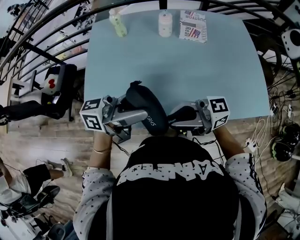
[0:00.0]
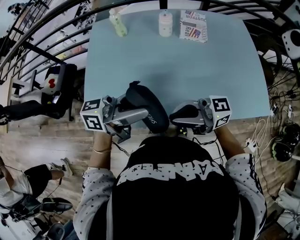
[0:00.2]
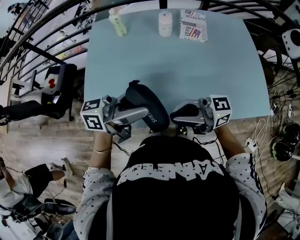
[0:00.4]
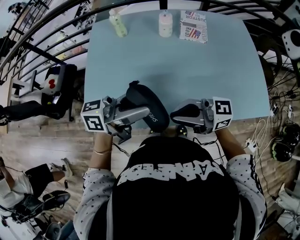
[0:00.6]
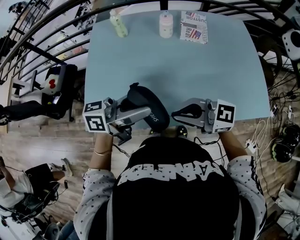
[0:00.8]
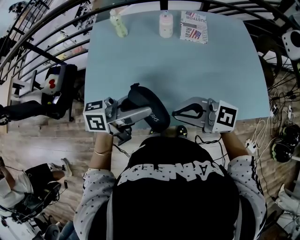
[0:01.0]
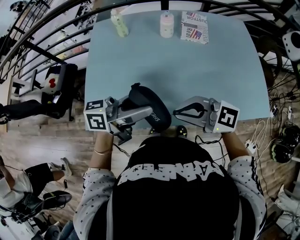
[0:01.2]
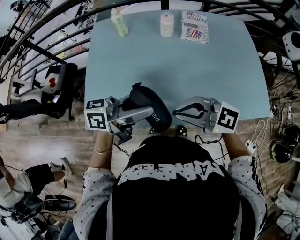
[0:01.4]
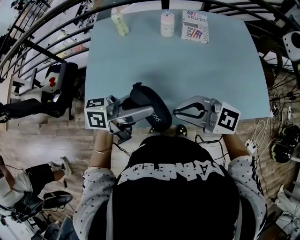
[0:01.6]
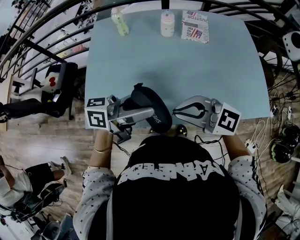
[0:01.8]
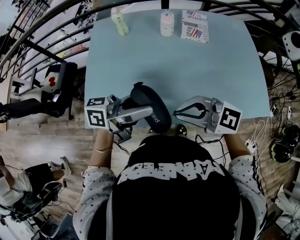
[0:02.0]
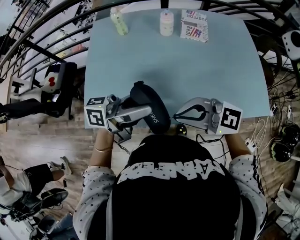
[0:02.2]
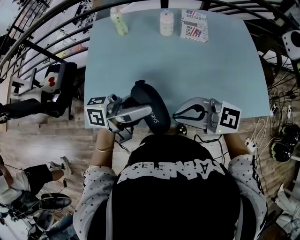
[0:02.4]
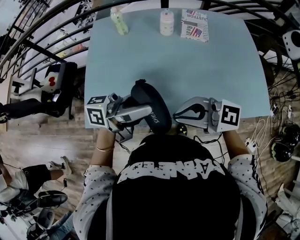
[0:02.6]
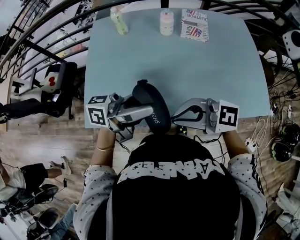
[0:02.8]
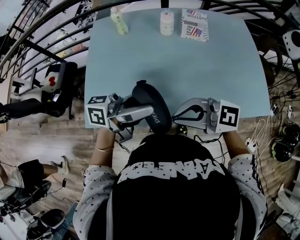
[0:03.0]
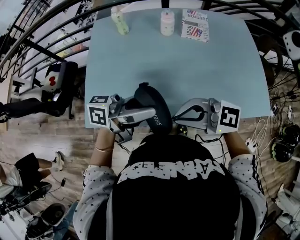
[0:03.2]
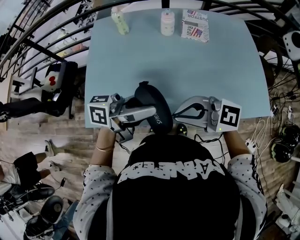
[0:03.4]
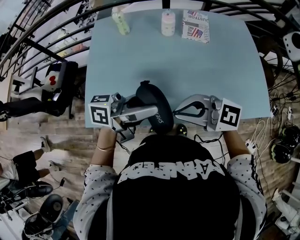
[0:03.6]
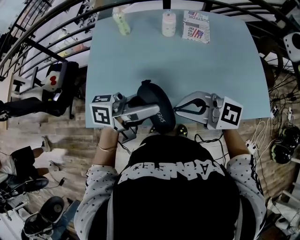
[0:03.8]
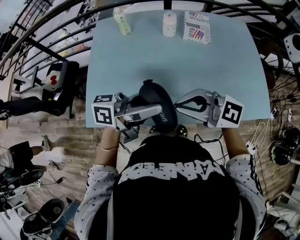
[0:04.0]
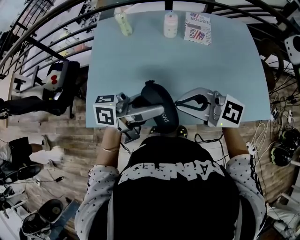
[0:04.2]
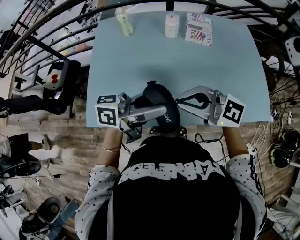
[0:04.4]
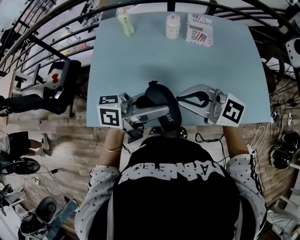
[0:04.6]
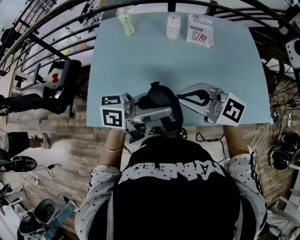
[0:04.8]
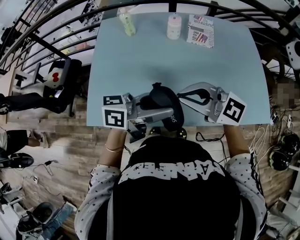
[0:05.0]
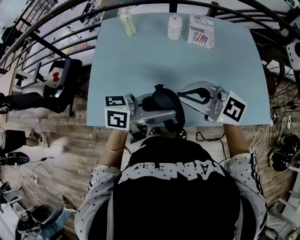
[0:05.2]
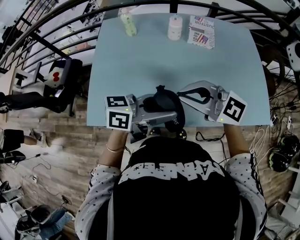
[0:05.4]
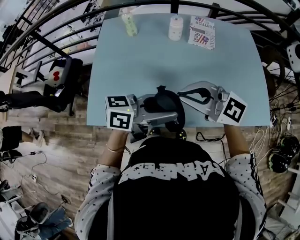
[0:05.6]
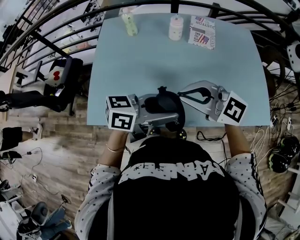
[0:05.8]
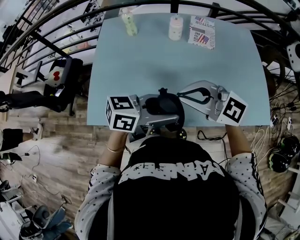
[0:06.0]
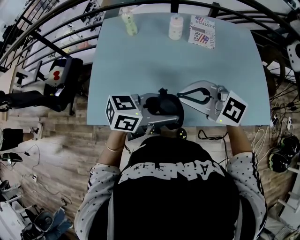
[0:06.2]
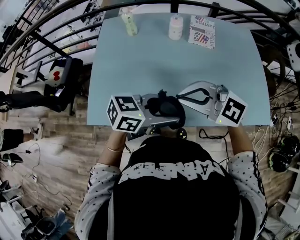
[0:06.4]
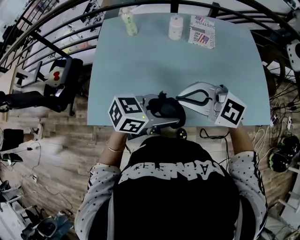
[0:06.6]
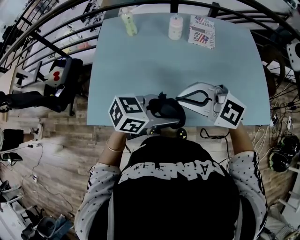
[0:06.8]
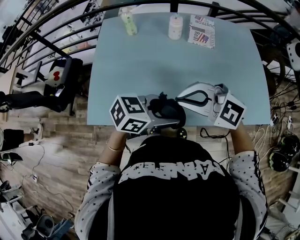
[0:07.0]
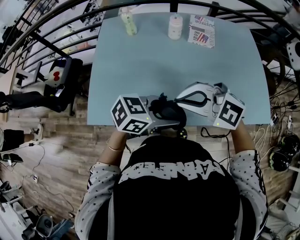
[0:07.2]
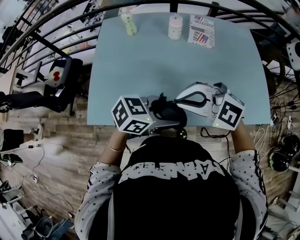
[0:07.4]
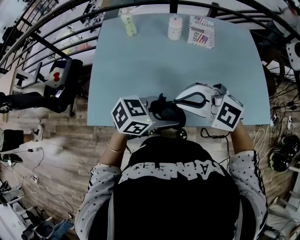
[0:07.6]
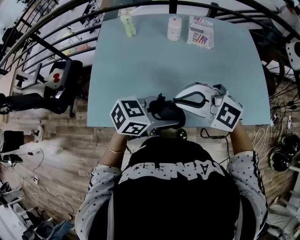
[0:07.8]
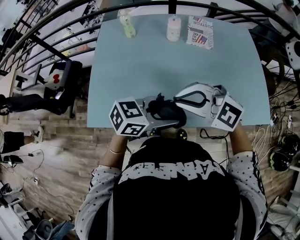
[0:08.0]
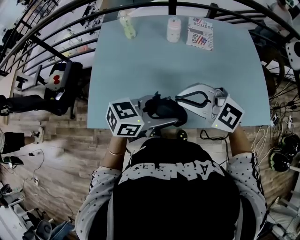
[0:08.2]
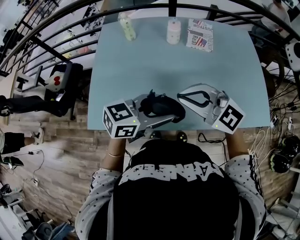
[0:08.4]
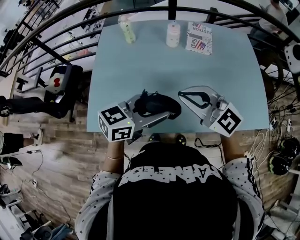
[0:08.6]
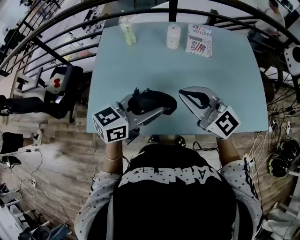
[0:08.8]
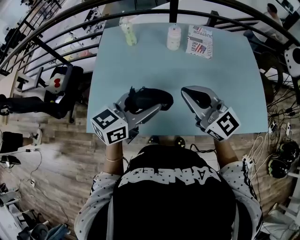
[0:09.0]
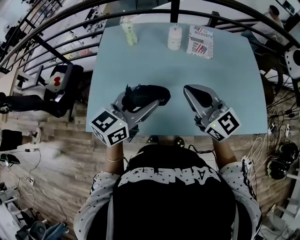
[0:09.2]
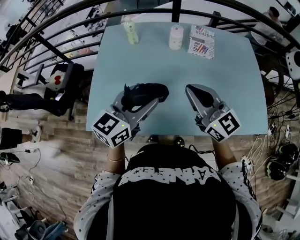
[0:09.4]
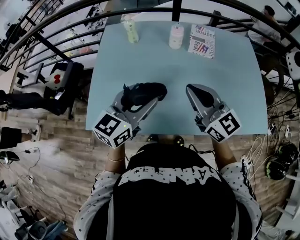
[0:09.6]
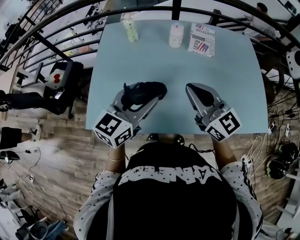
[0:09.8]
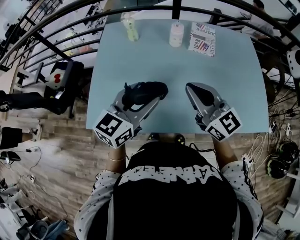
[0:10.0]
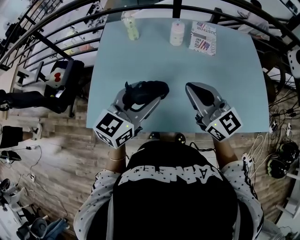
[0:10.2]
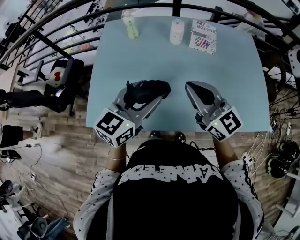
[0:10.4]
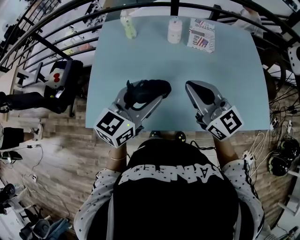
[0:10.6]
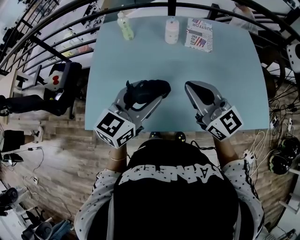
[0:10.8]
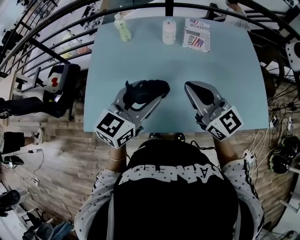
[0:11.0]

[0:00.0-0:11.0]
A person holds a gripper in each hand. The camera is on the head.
0:00.0 to 0:01.6: The right gripper turns by roughly 40 degrees.
0:01.6 to 0:03.2: The grippers make only small movements.
0:03.2 to 0:04.8: The right gripper shifts by approximately 5 cm.
0:04.8 to 0:06.2: The left gripper rotates about 20 degrees.
0:06.2 to 0:07.8: The grippers stay close to where they were, moving slightly.
0:07.8 to 0:09.4: The right gripper changes place by about 10 cm, and rotates approximately 50 degrees; the left gripper moves about 15 cm, and swivels some 40 degrees.
0:09.4 to 0:11.0: The grippers stay close to where they were, moving slightly.

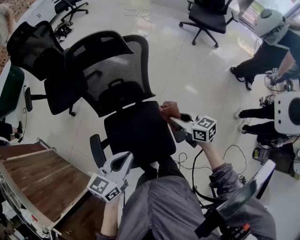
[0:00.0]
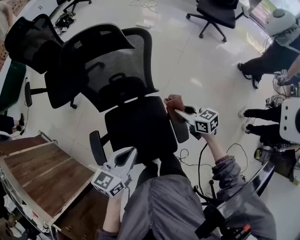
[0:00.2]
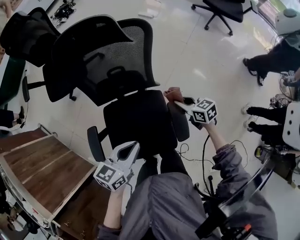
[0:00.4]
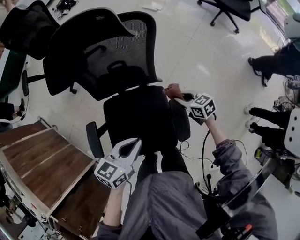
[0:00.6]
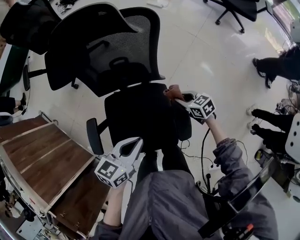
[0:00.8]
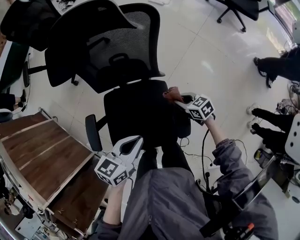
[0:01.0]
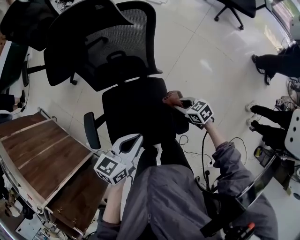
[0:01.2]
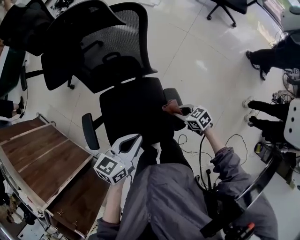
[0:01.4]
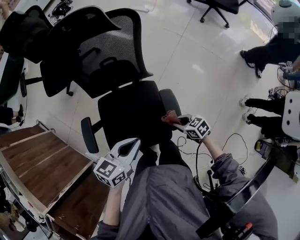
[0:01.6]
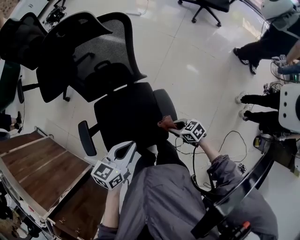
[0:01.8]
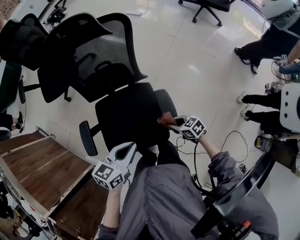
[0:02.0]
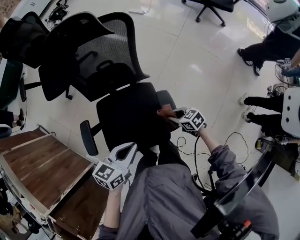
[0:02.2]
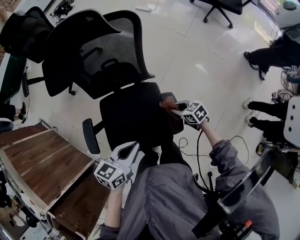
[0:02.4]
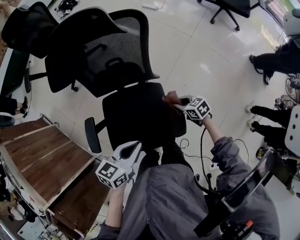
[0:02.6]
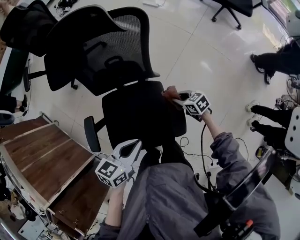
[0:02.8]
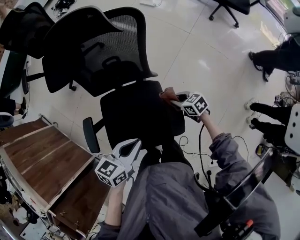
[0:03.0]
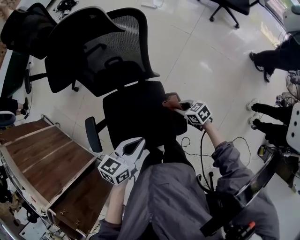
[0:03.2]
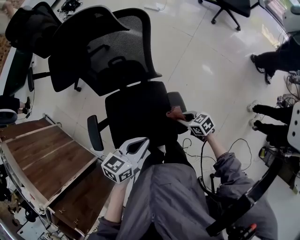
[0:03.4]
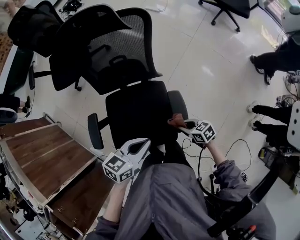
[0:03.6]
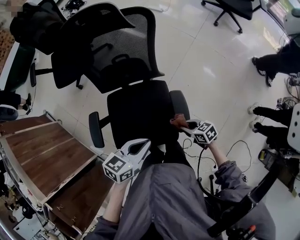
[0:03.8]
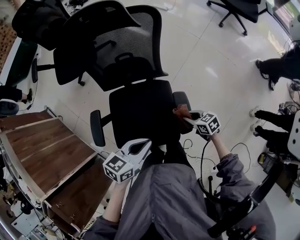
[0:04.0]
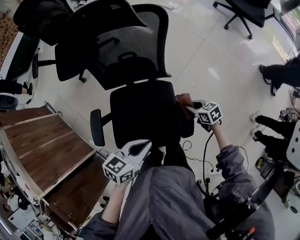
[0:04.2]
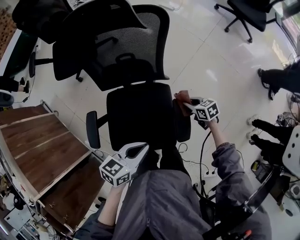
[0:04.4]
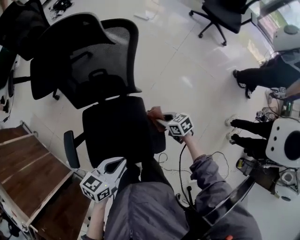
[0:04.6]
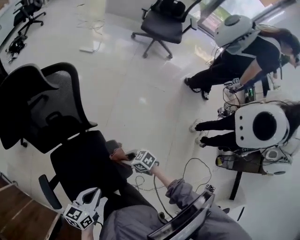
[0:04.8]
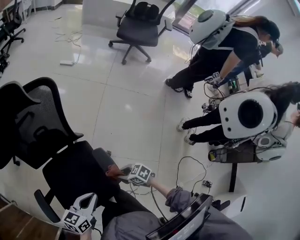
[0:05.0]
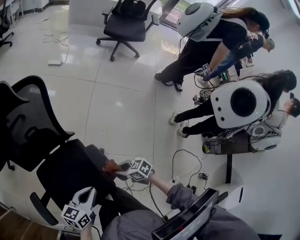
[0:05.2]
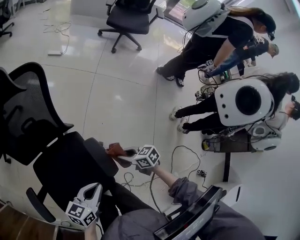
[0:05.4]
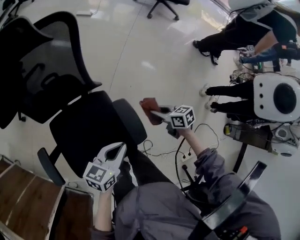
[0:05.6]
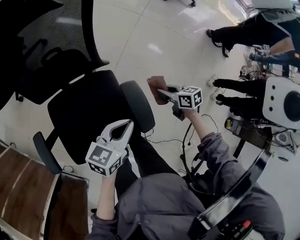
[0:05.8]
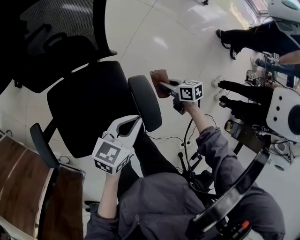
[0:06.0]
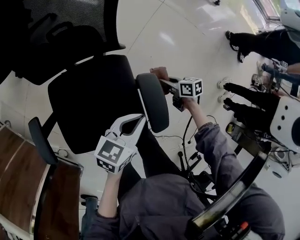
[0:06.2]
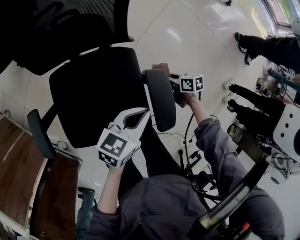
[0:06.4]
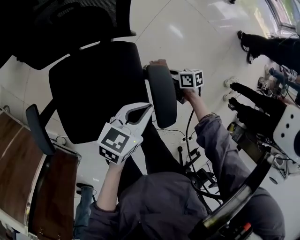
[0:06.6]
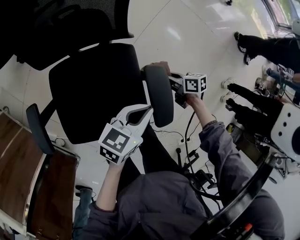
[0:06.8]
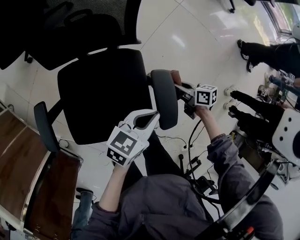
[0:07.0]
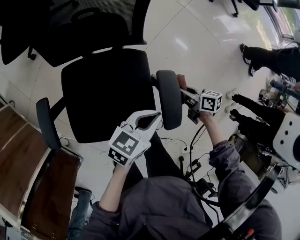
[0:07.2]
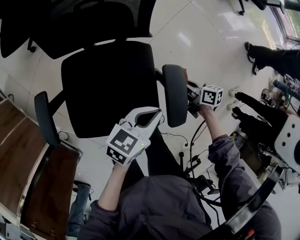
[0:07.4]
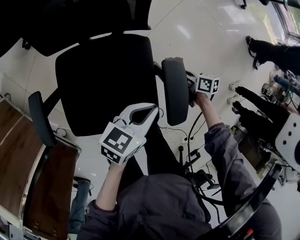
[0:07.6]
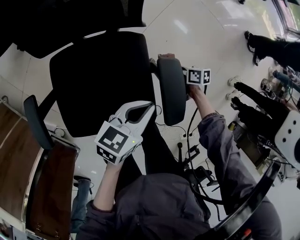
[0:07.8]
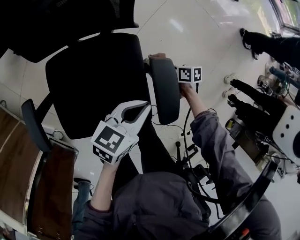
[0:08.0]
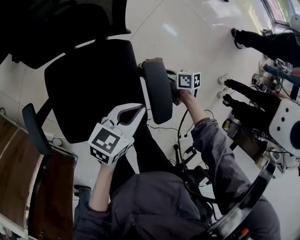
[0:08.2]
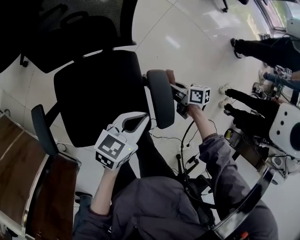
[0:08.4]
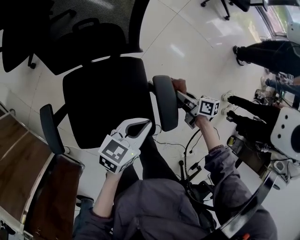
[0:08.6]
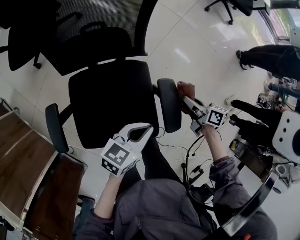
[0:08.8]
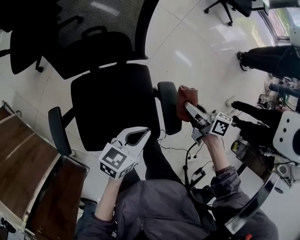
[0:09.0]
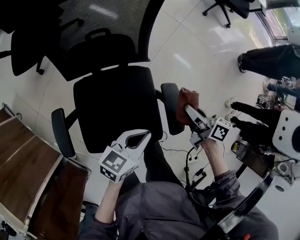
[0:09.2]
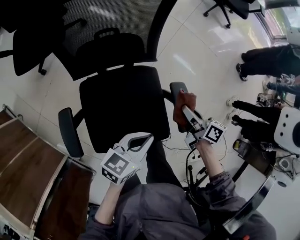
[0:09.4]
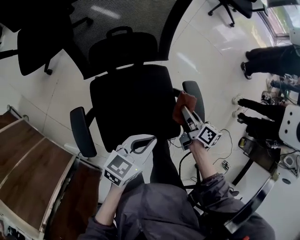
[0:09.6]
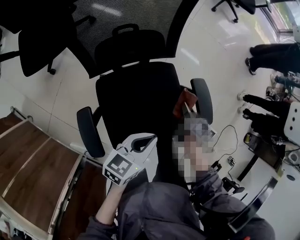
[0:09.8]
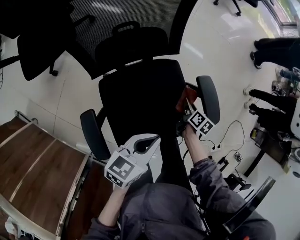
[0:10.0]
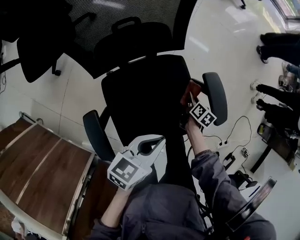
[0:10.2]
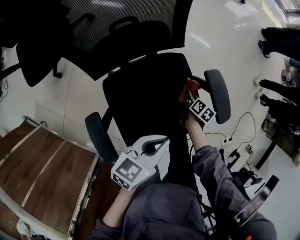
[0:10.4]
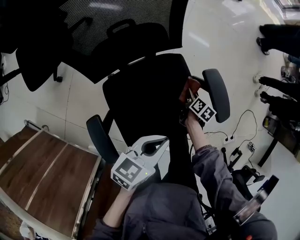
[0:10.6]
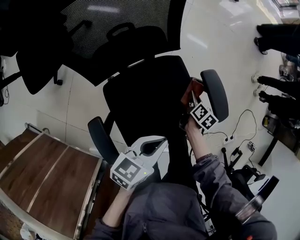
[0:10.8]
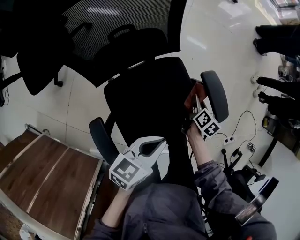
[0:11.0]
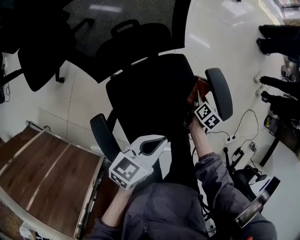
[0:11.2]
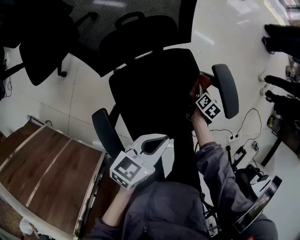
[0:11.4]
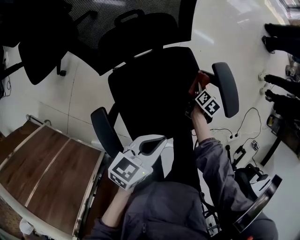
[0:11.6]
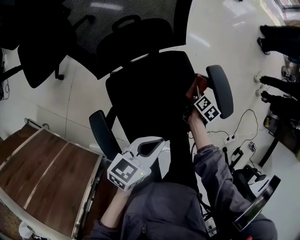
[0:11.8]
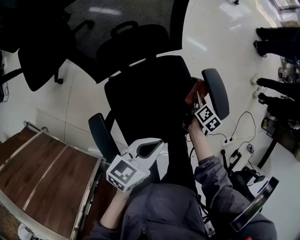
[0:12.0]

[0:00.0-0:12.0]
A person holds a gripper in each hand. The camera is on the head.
0:00.0 to 0:01.6: The right gripper moves downward, about 20 cm, and rotates roughly 30 degrees. Meanwhile the left gripper is displaced downward by about 10 cm.
0:01.6 to 0:03.0: The right gripper moves some 15 cm.
0:04.4 to 0:06.0: The right gripper changes place by roughly 15 cm, and swivels approximately 30 degrees. The left gripper goes some 10 cm downward.
0:06.0 to 0:07.6: The left gripper travels downward by some 5 cm. The right gripper goes up and down, about 10 cm each way, reversing 2 times.
0:07.6 to 0:09.0: The right gripper shifts some 25 cm upward. Meanwhile the left gripper heads upward, covering about 5 cm.
0:09.0 to 0:10.4: The left gripper ends up some 15 cm from where it was, while the right gripper heads downward, covering about 25 cm, and tips its fingers downward by some 30 degrees.
0:10.4 to 0:12.0: The right gripper swings up and down, some 10 cm each way, with 2 reversals.

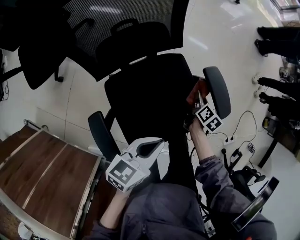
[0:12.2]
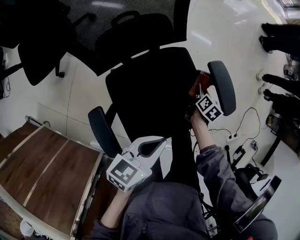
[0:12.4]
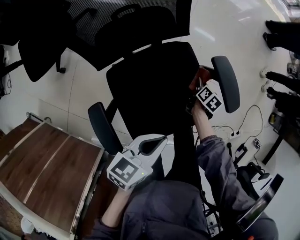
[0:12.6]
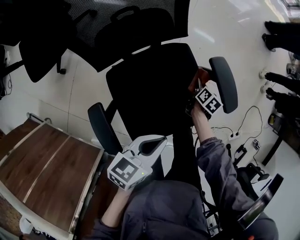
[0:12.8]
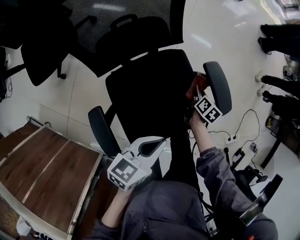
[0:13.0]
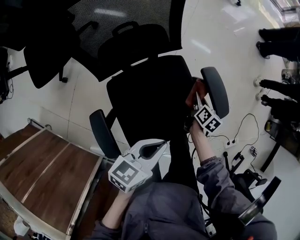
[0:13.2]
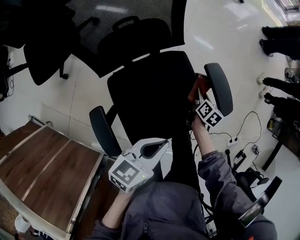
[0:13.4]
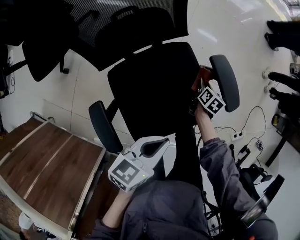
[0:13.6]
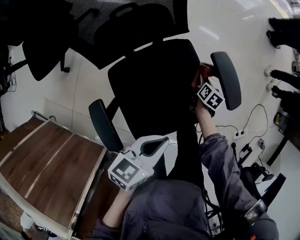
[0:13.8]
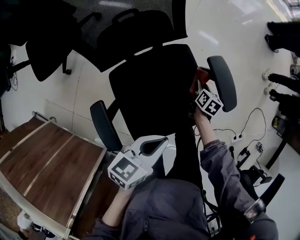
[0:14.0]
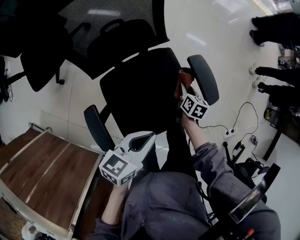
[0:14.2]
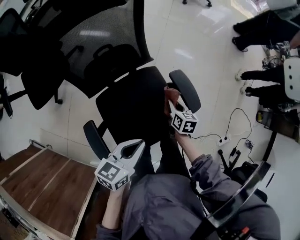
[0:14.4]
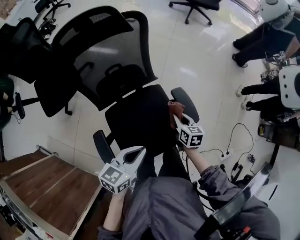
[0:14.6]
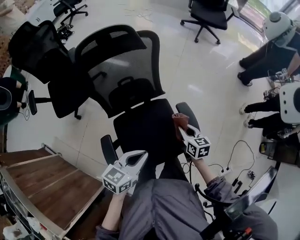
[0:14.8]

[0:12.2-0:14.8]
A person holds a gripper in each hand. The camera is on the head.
0:12.2 to 0:13.4: The right gripper reaches some 10 cm downward, then returns.
0:13.4 to 0:14.8: The left gripper heads upward, covering roughly 15 cm; the right gripper heads upward, covering approximately 25 cm, and turns by about 40 degrees.
